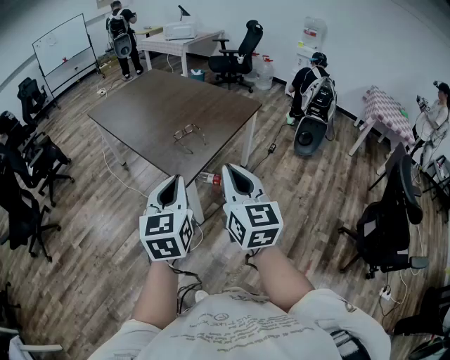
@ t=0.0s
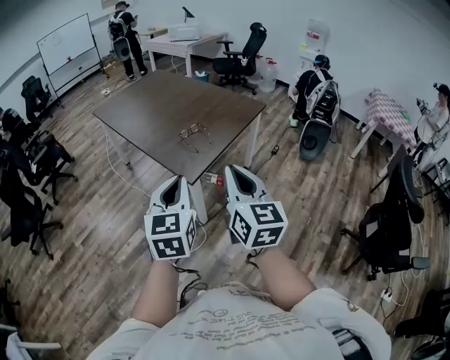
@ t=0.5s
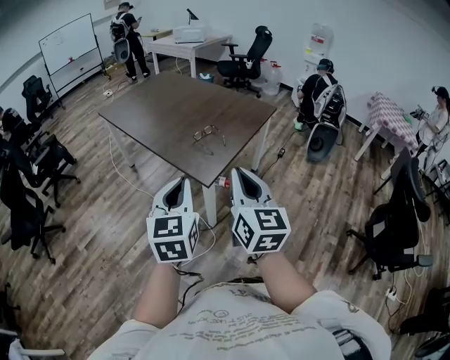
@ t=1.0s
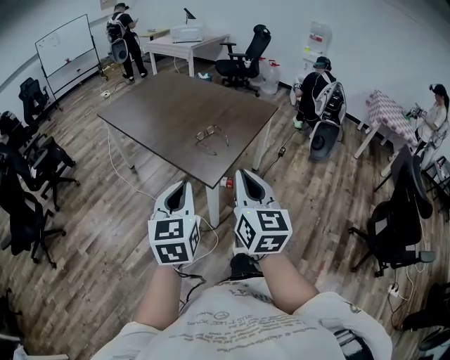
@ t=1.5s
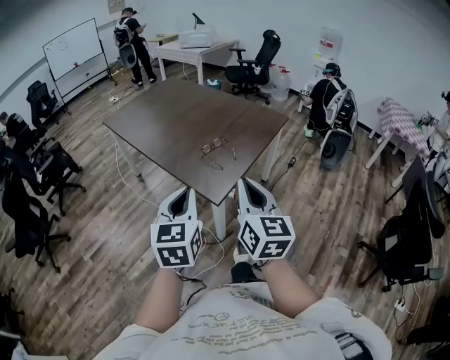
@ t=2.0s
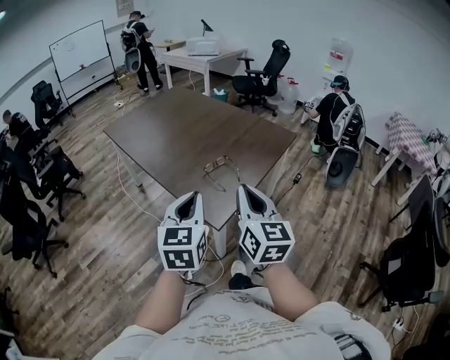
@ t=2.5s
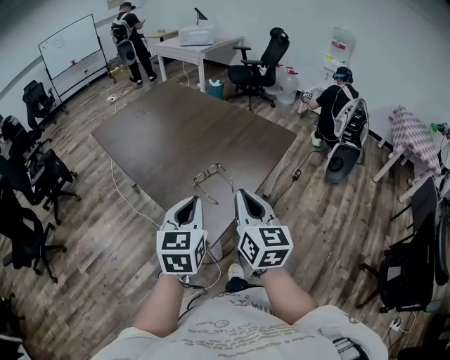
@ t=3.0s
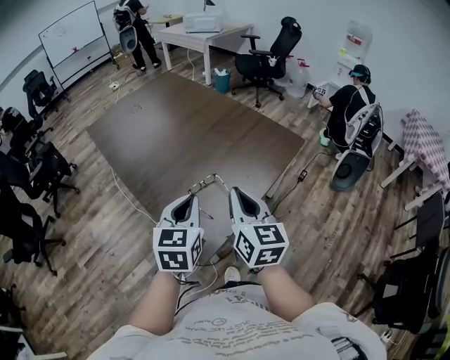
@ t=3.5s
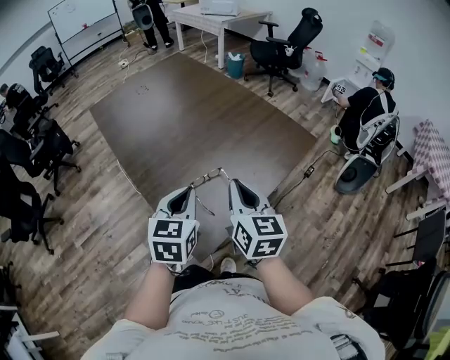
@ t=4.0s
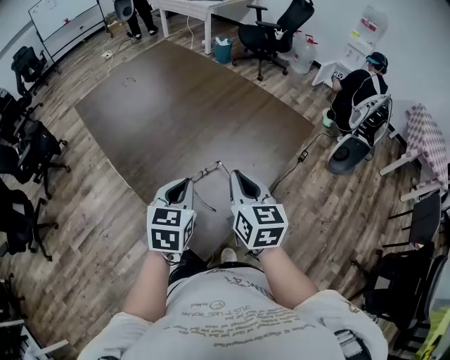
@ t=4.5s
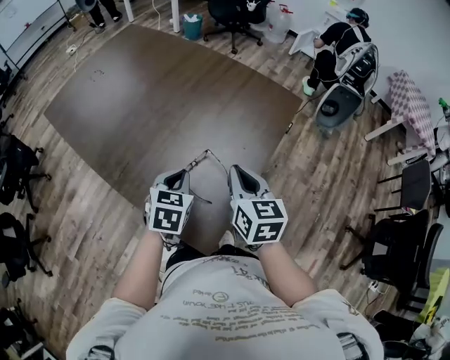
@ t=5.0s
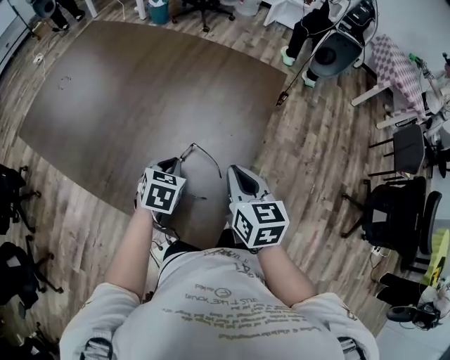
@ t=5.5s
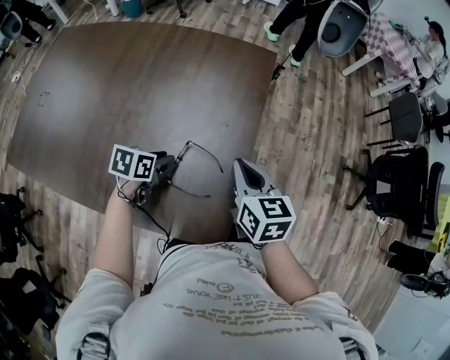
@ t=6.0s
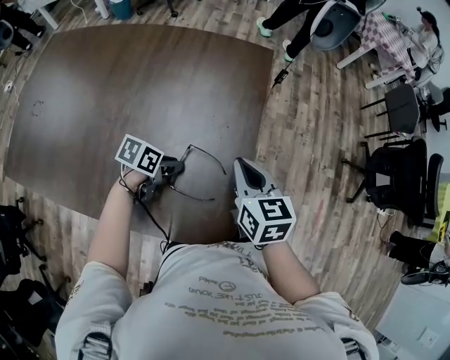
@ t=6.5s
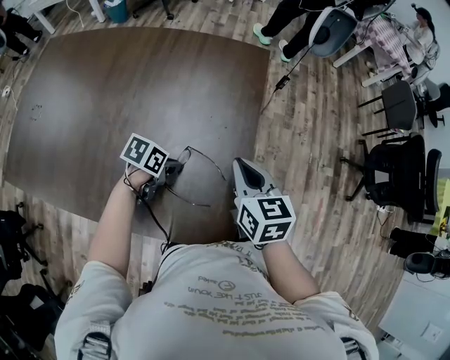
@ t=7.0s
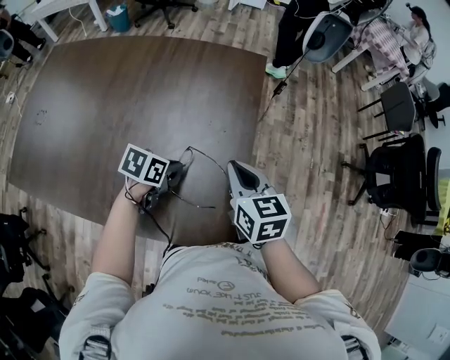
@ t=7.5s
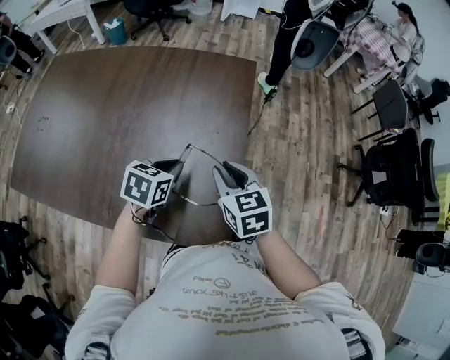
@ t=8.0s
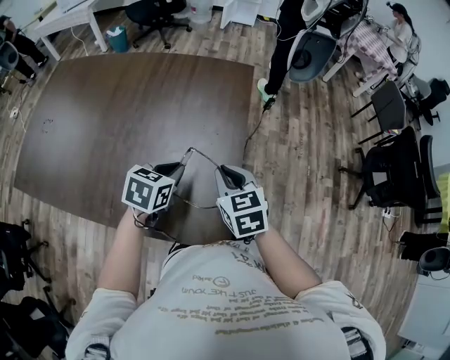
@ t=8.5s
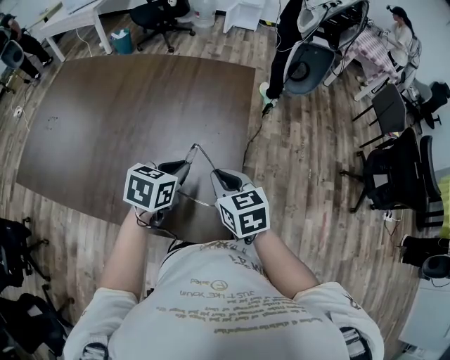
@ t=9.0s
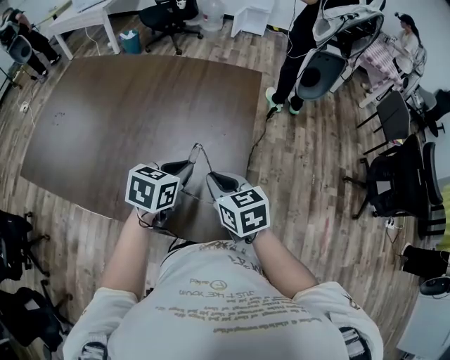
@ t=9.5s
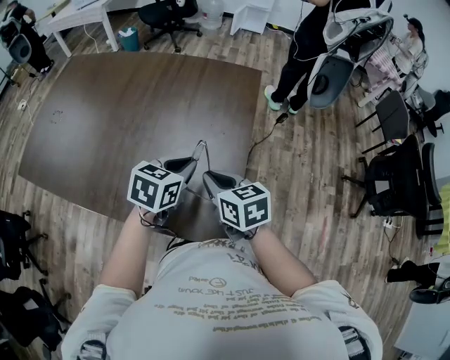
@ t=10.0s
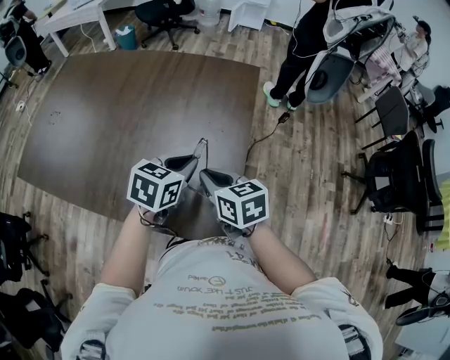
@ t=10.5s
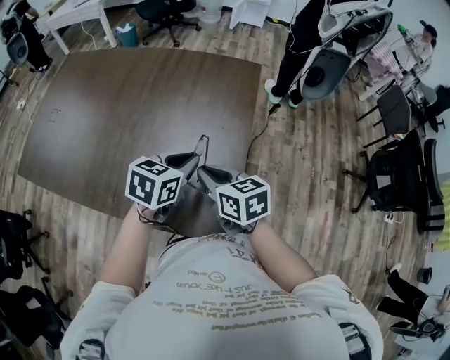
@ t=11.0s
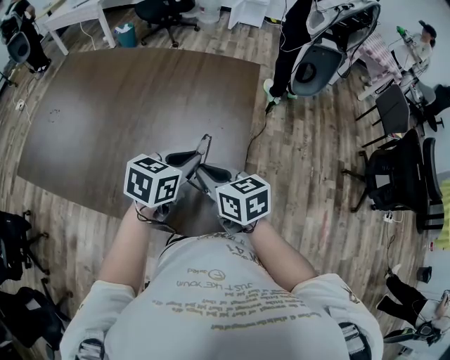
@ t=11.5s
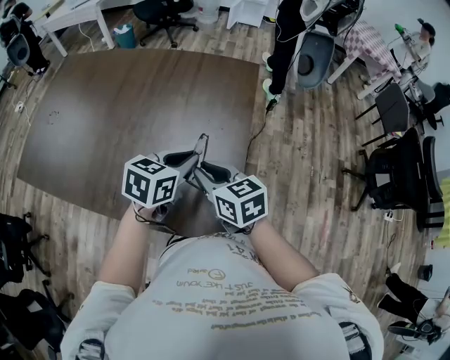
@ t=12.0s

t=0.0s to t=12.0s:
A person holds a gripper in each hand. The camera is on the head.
t=0.0s to t=2.0s: Both grippers move to the left and forward, some 10 cm.
t=2.0s to t=4.0s: Both grippers travel together forward, roughly 35 cm.
t=4.0s to t=6.0s: The right gripper is displaced downward by roughly 10 cm, and changes its angle by approximately 40 degrees. The left gripper goes approximately 25 cm downward, changes its angle by some 70 degrees, and opens up.
t=6.0s to t=8.0s: The left gripper shifts roughly 10 cm upward and to the right, and rotates about 20 degrees.
t=8.0s to t=10.0s: The left gripper travels upward by about 5 cm. The right gripper is displaced backward by roughly 5 cm.
t=10.0s to t=12.0s: The grippers stay close to where they were, moving slightly.

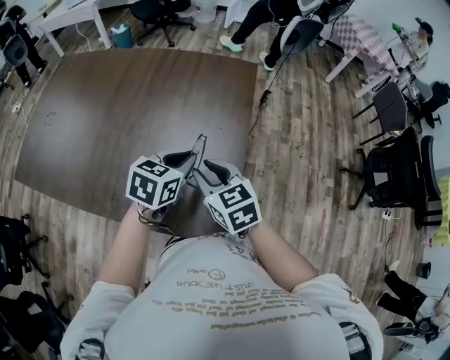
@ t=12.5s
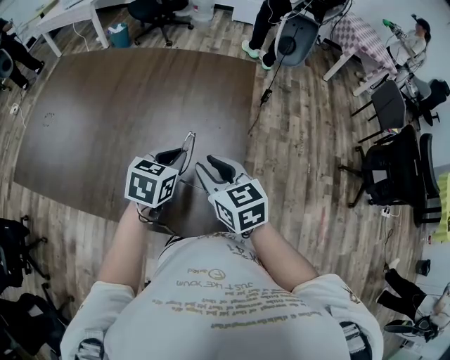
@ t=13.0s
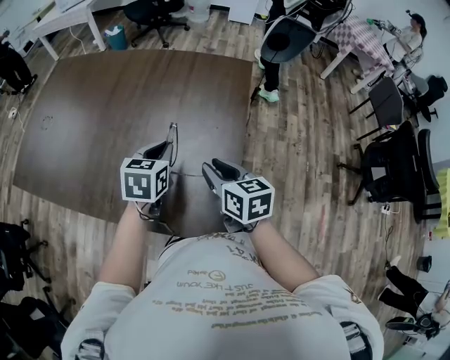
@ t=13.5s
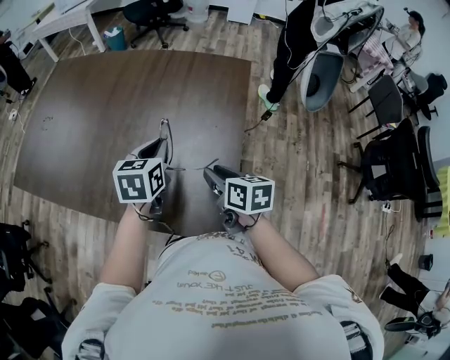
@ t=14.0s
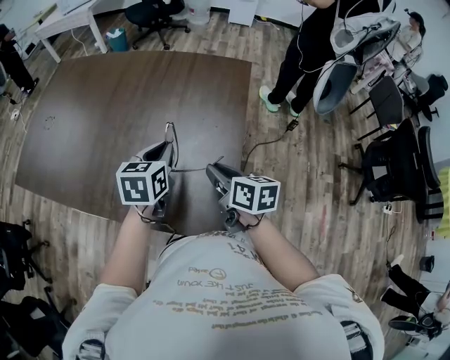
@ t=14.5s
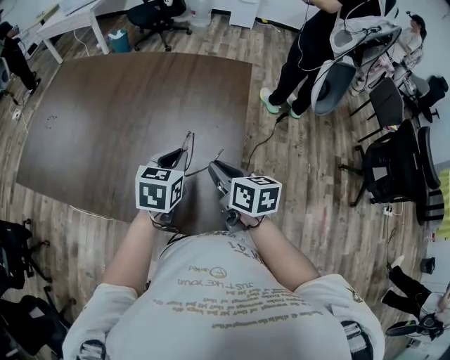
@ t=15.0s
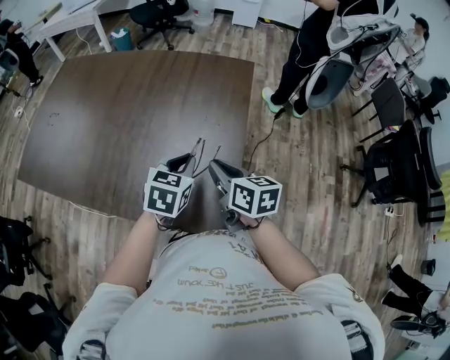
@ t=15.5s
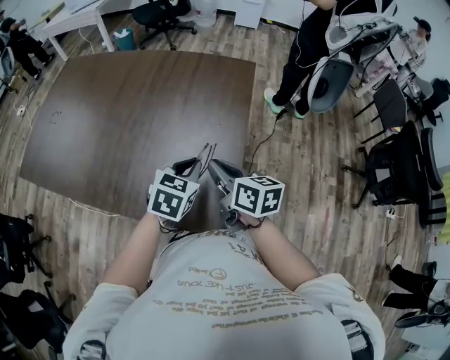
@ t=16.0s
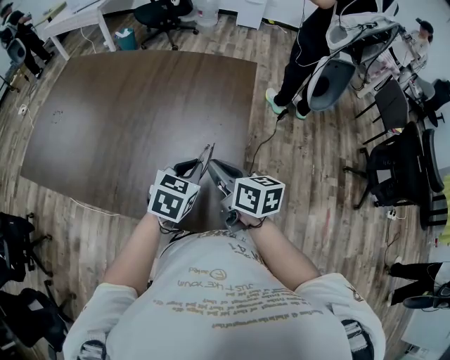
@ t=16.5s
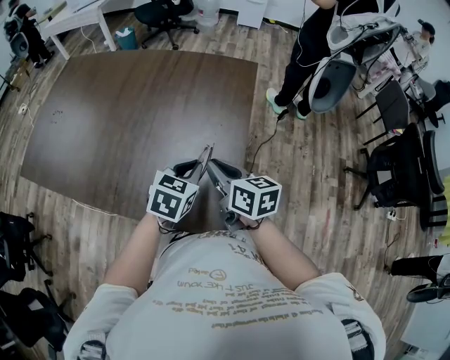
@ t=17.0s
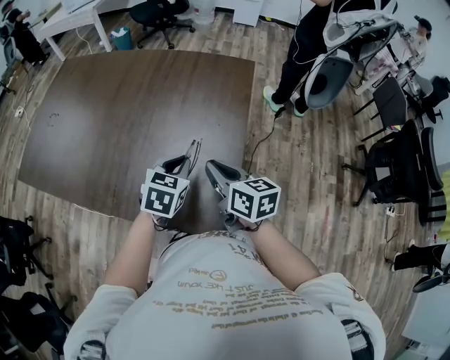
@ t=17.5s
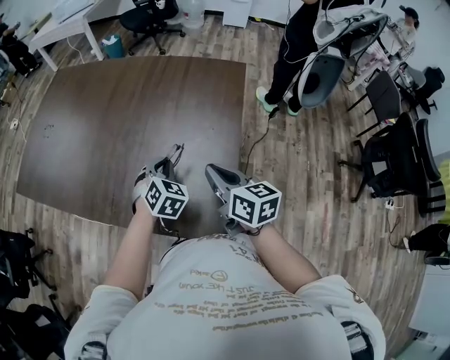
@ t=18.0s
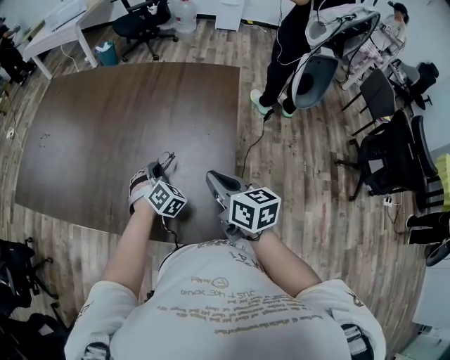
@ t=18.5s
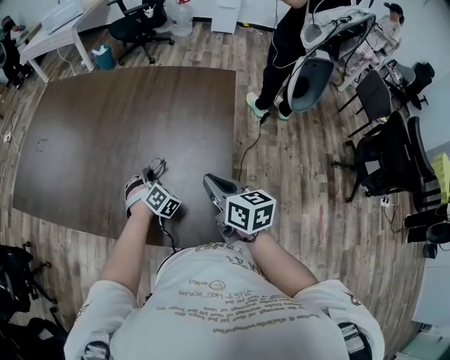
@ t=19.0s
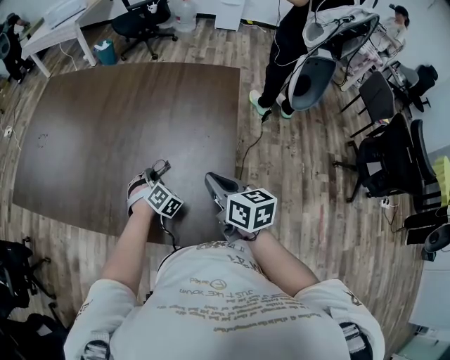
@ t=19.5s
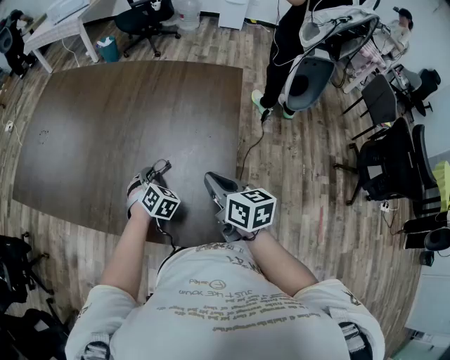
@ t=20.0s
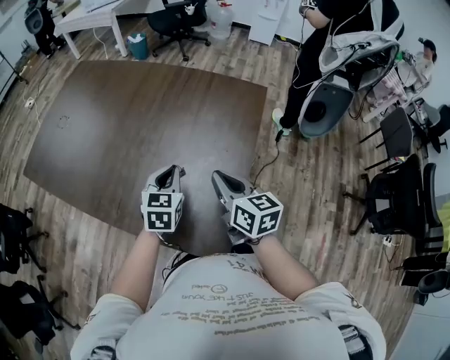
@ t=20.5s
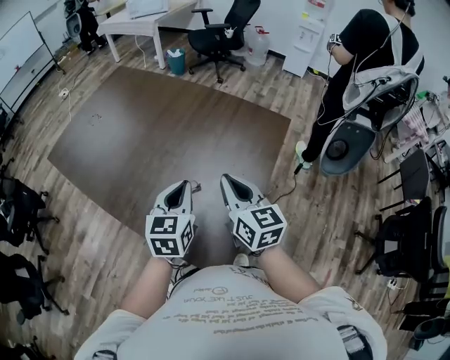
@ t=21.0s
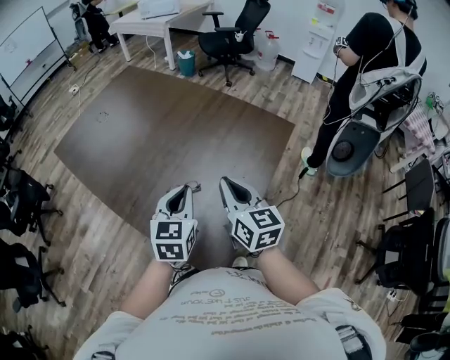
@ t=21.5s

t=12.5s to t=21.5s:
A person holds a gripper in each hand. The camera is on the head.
t=12.5s to t=14.5s: The left gripper is displaced to the left by about 5 cm, and changes its angle by approximately 20 degrees, while the right gripper moves approximately 5 cm, and changes its angle by roughly 40 degrees.
t=14.5s to t=17.0s: The left gripper shifts roughly 10 cm to the right and backward, and swivels about 20 degrees.
t=17.0s to t=19.5s: The left gripper moves downward, forward and to the left, approximately 20 cm, and rotates approximately 50 degrees.
t=19.5s to t=21.5s: The right gripper travels upward by some 10 cm, and changes its angle by roughly 30 degrees. The left gripper is displaced upward by some 25 cm, and rotates around the line of its fingers by roughly 60 degrees, counterclockwise from behind.

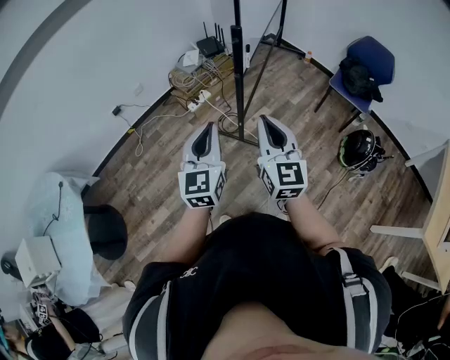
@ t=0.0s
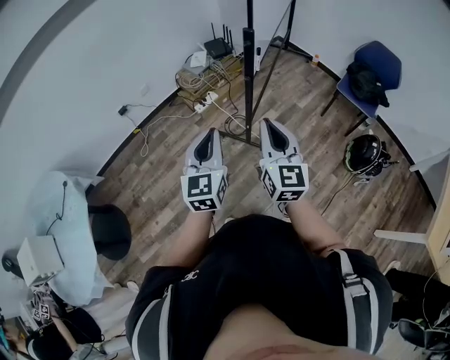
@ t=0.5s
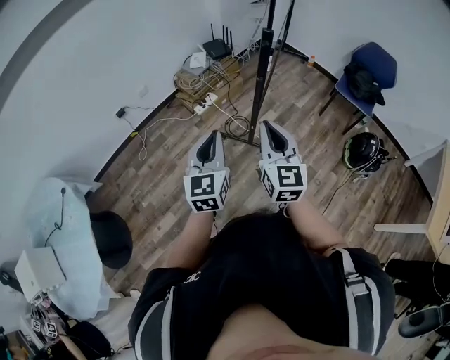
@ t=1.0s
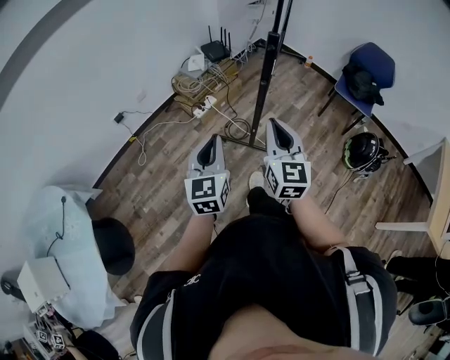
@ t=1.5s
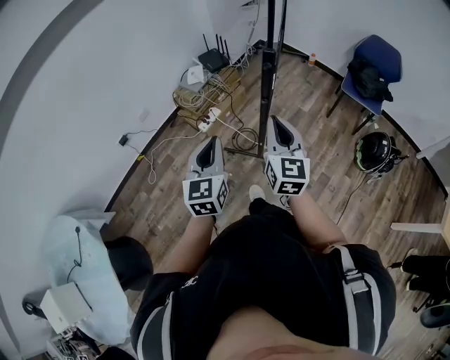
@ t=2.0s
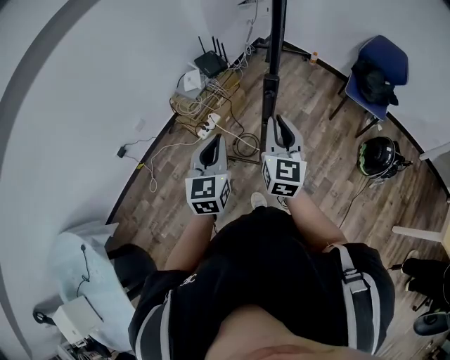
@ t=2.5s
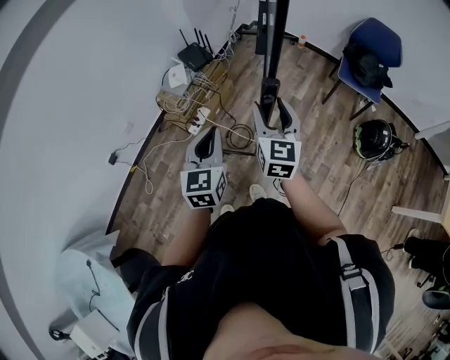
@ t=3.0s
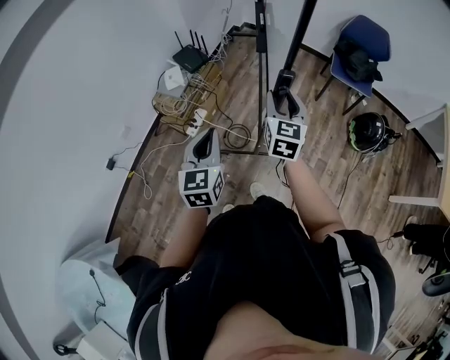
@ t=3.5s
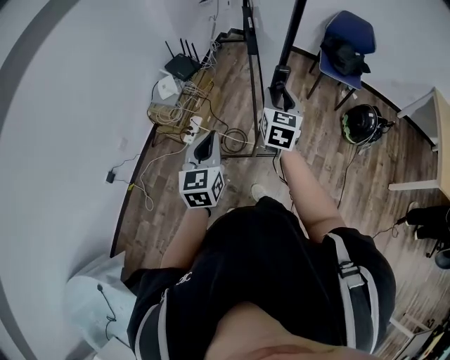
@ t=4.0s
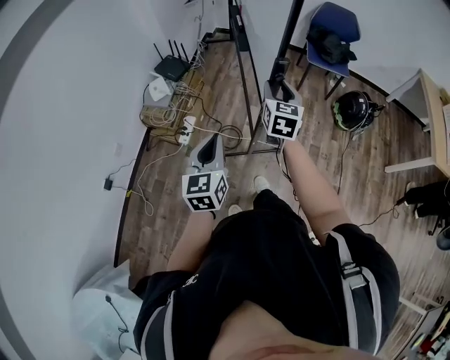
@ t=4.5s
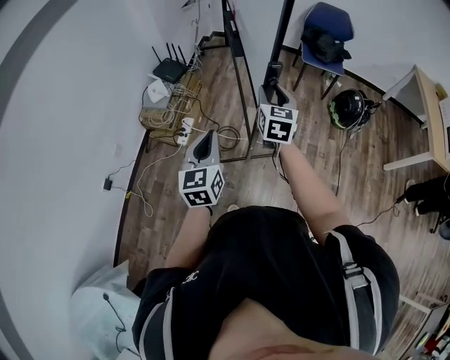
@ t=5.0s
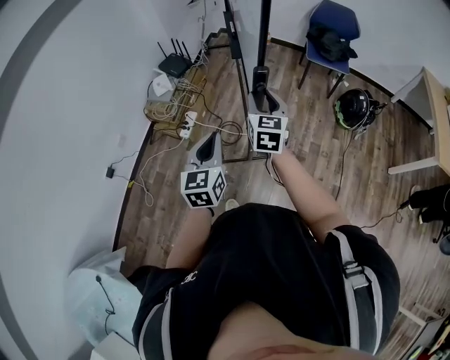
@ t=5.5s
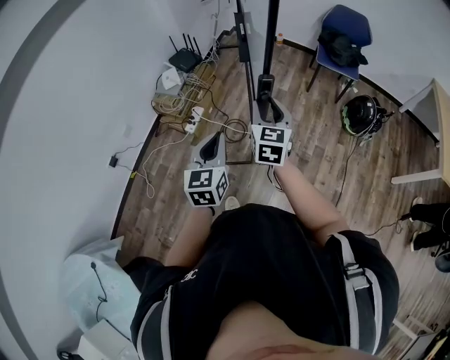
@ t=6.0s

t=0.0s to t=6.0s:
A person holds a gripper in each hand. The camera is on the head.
t=0.0s to t=2.0s: Both grippers move forward and to the left, roughly 15 cm.
t=2.0s to t=4.0s: The right gripper shifts some 20 cm forward, changes its angle by approximately 30 degrees, and opens up, while the left gripper moves forward and to the left, approximately 15 cm.
t=4.0s to t=6.0s: The right gripper travels backward by roughly 15 cm. Meanwhile the left gripper travels backward and to the right by some 15 cm.
